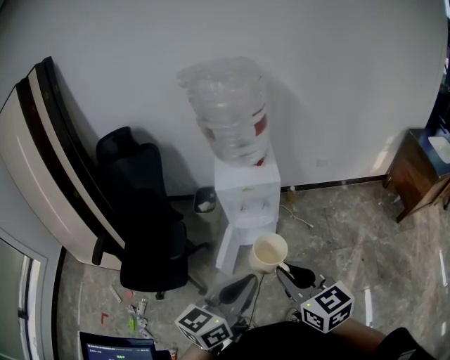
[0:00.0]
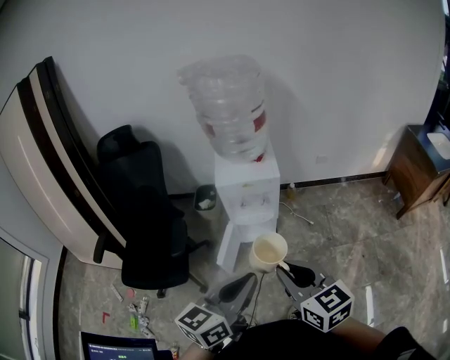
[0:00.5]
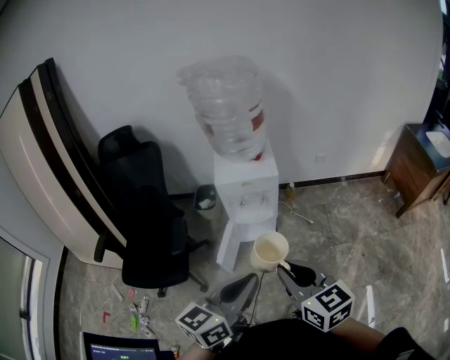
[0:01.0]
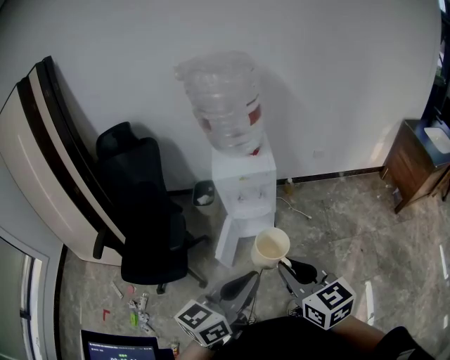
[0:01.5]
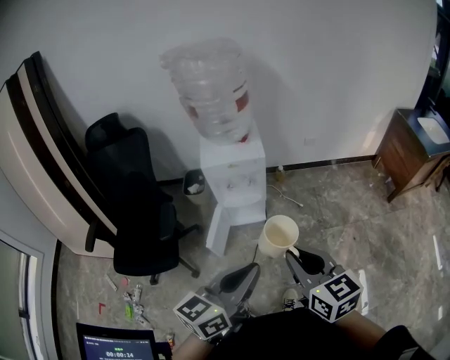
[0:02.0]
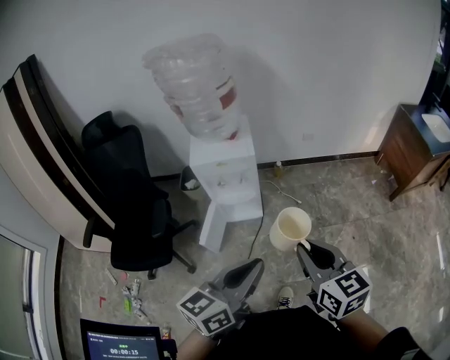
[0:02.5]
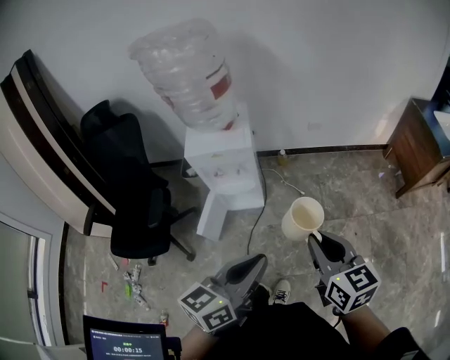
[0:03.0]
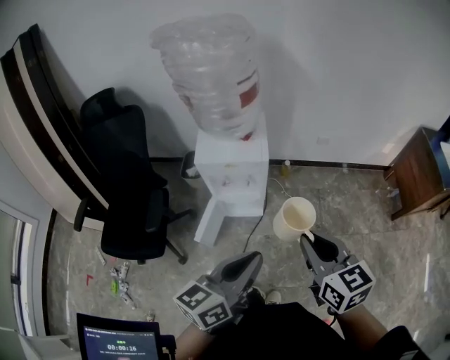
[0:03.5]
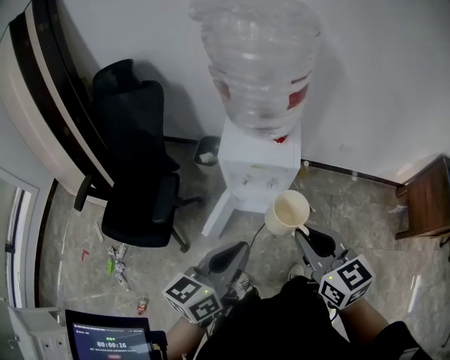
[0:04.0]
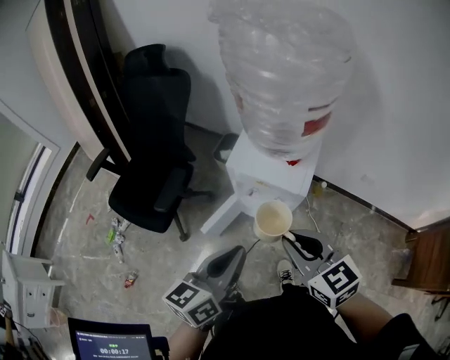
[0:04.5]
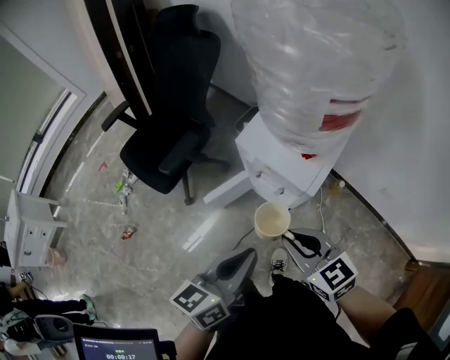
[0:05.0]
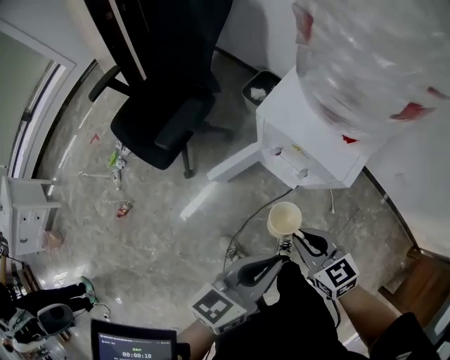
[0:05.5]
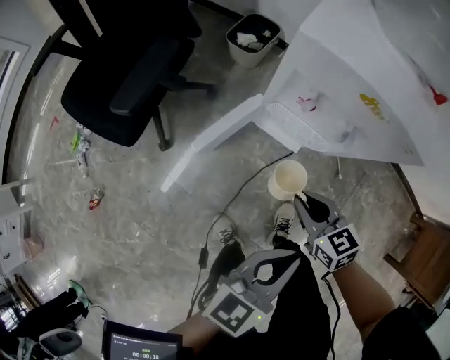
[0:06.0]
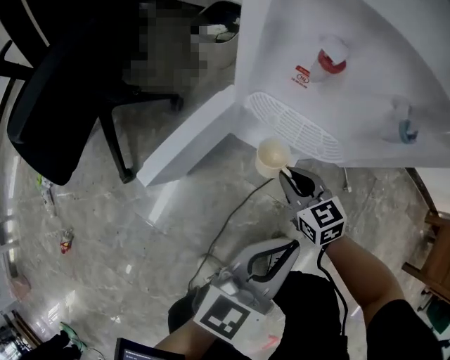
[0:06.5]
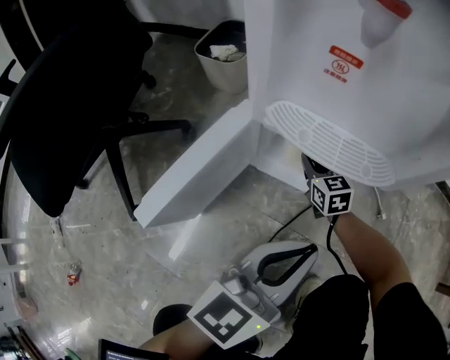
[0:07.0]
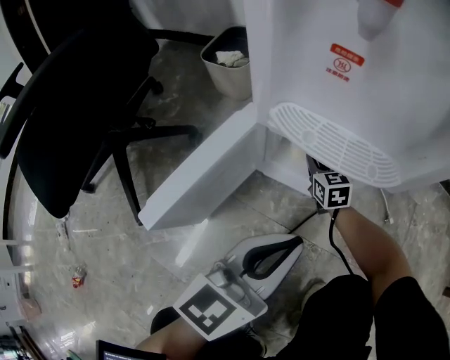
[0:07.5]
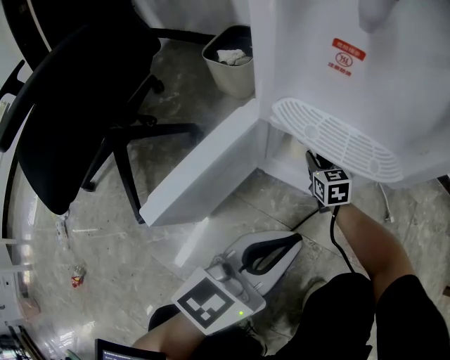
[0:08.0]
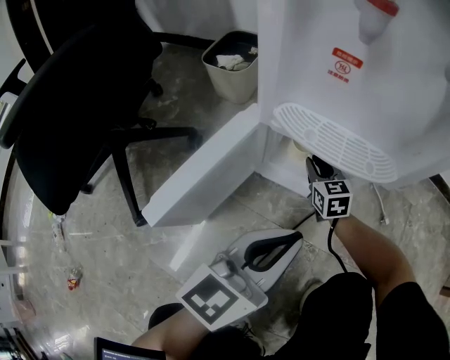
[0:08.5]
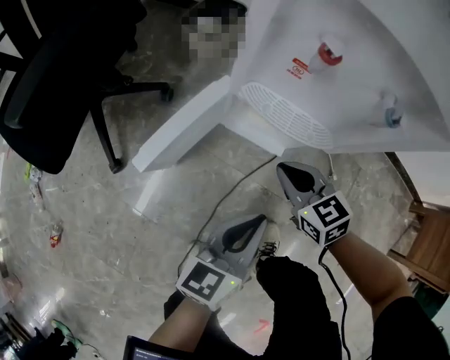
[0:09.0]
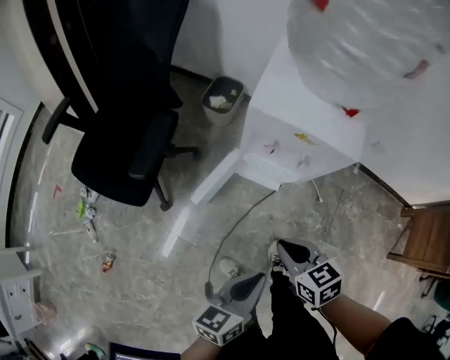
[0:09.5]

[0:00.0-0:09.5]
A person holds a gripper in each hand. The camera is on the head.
0:00.0 to 0:02.0: The right gripper travels to the right by some 5 cm; the left gripper moves some 5 cm.
0:02.0 to 0:04.0: Both grippers travel together forward, some 20 cm. The left gripper changes its angle by approximately 20 degrees.
0:04.0 to 0:05.5: The right gripper is displaced downward by some 20 cm, and swivels roughly 40 degrees. The left gripper travels downward by some 10 cm, and changes its angle by approximately 20 degrees.
0:05.5 to 0:07.5: Both grippers move downward, about 50 cm. The right gripper rotates some 40 degrees. The left gripper rotates about 20 degrees.
0:07.5 to 0:09.5: The left gripper goes approximately 35 cm upward and backward, and swivels some 30 degrees, while the right gripper shifts approximately 60 cm upward and backward, and rotates some 20 degrees.

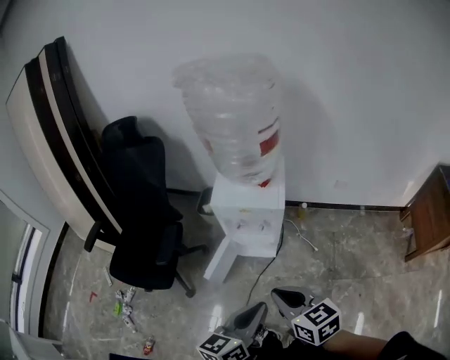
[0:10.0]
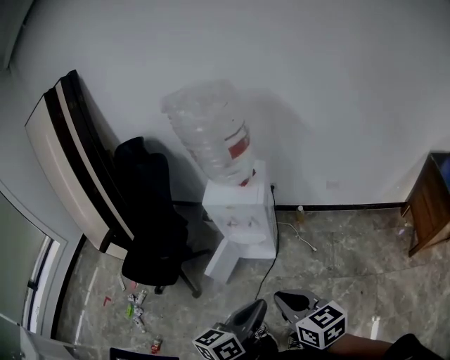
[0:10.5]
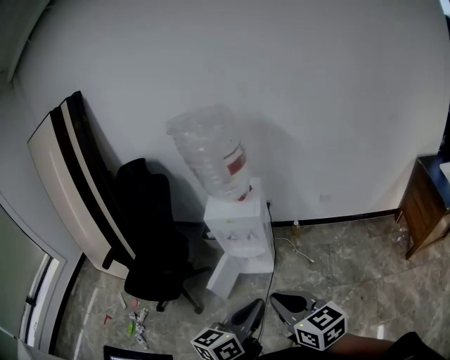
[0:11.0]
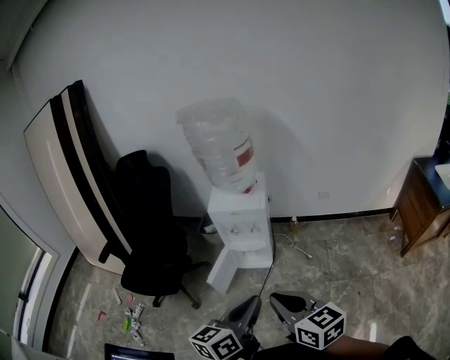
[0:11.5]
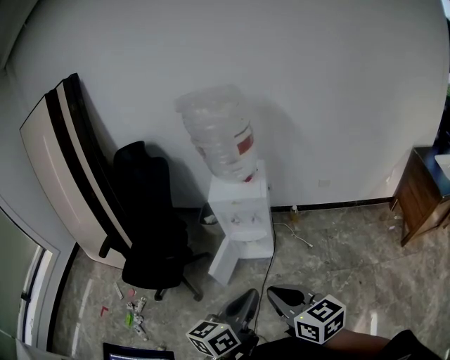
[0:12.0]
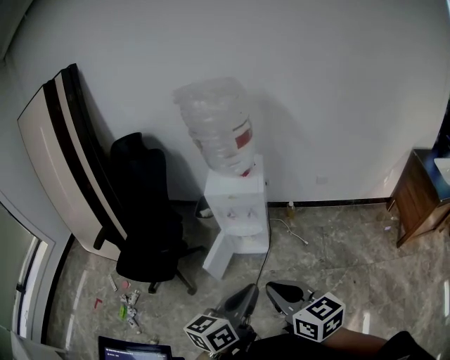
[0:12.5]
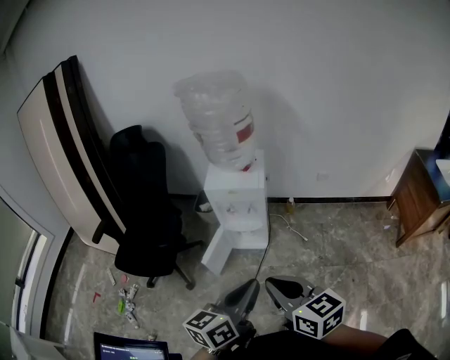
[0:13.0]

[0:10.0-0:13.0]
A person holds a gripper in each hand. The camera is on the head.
0:10.0 to 0:11.5: The two grippers go about 15 cm backward and upward.
0:11.5 to 0:13.0: The grippers move only a little.

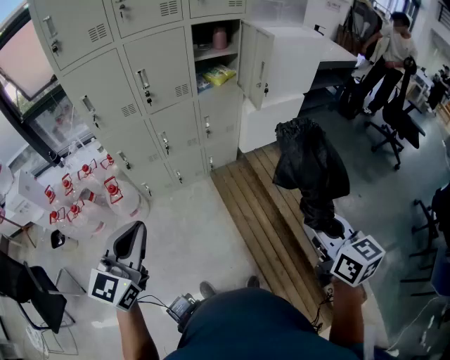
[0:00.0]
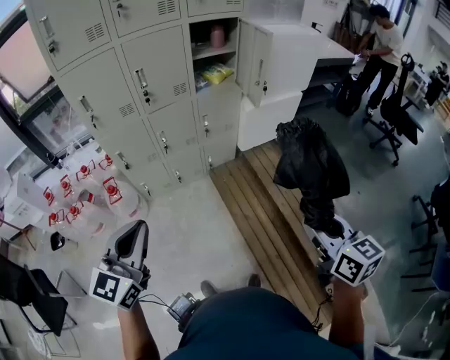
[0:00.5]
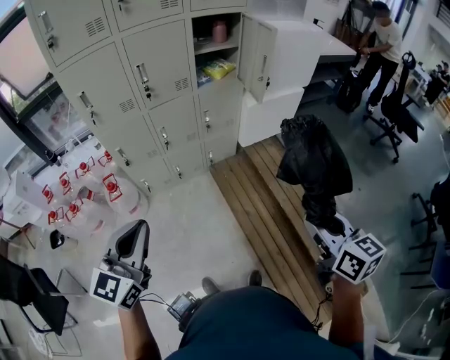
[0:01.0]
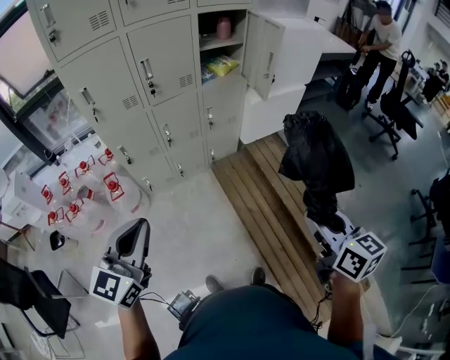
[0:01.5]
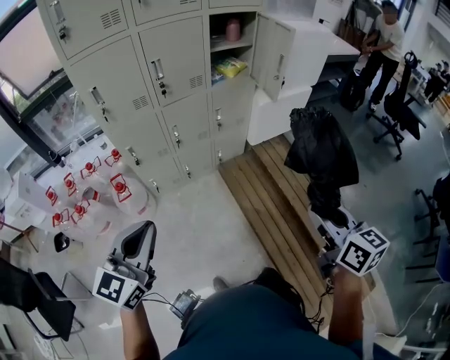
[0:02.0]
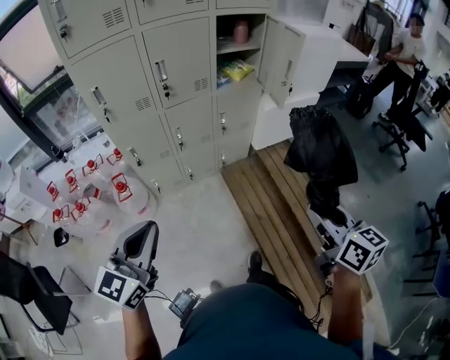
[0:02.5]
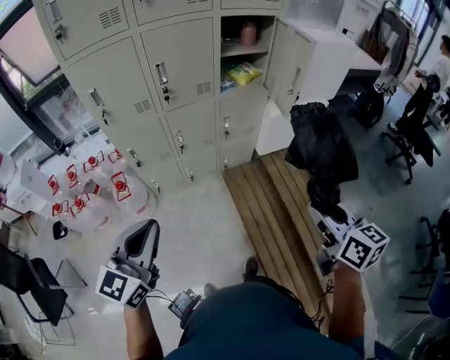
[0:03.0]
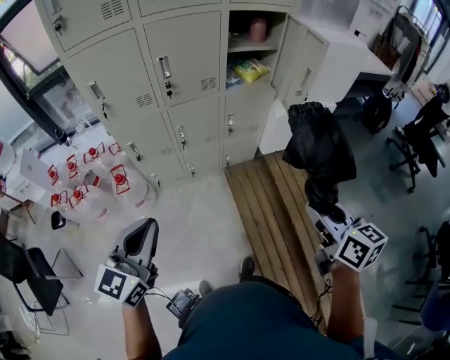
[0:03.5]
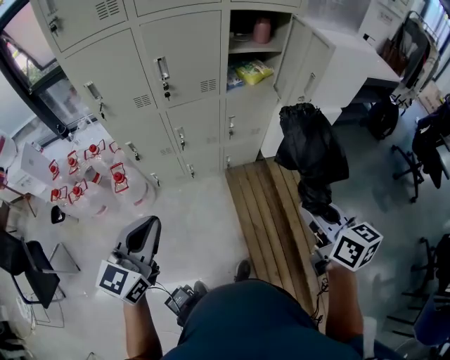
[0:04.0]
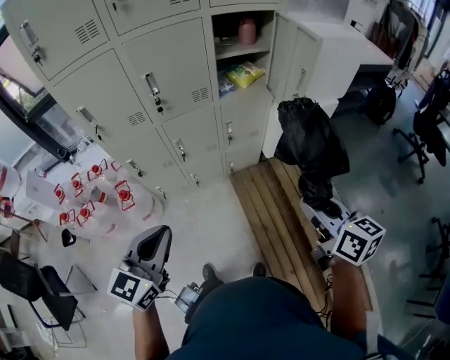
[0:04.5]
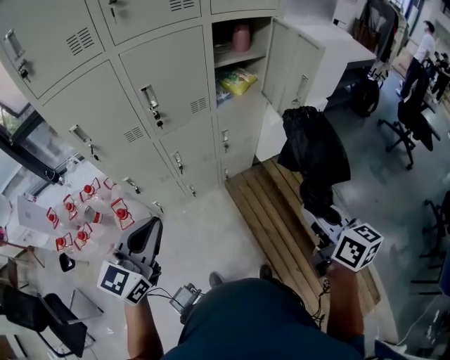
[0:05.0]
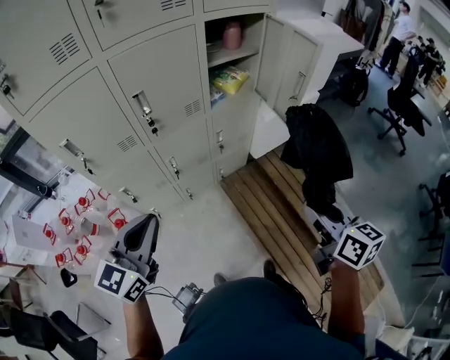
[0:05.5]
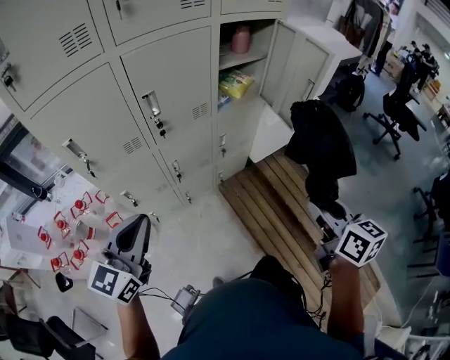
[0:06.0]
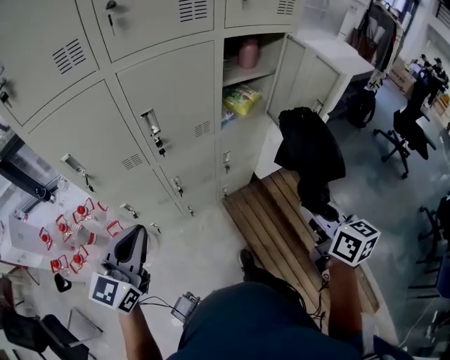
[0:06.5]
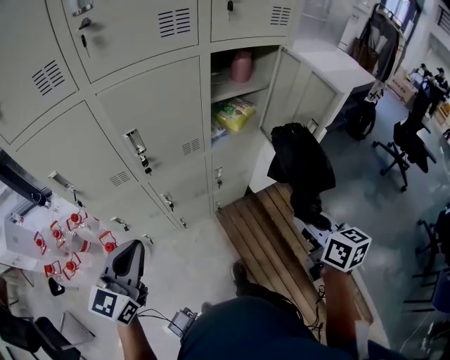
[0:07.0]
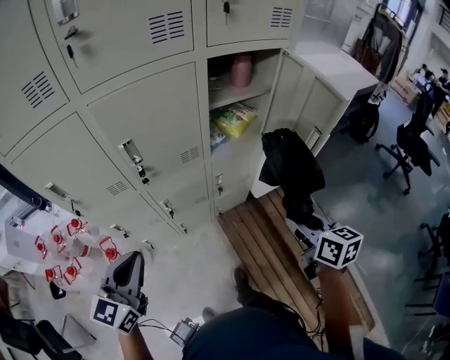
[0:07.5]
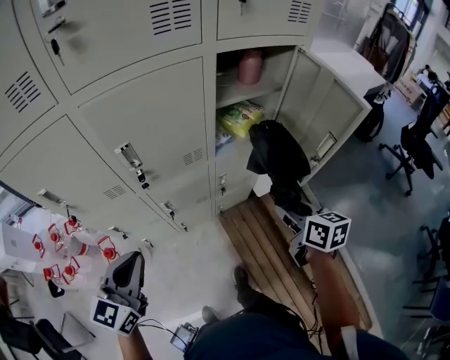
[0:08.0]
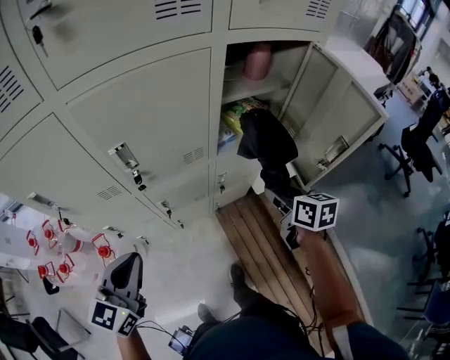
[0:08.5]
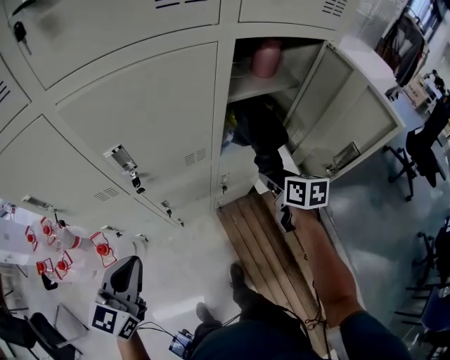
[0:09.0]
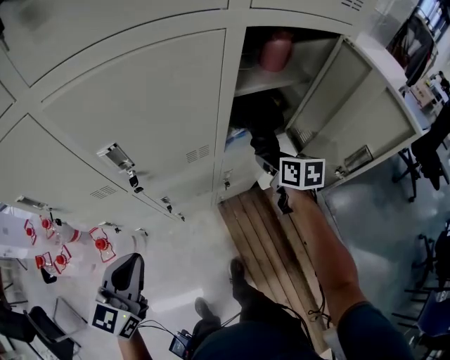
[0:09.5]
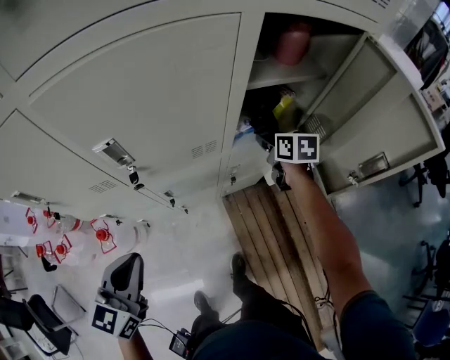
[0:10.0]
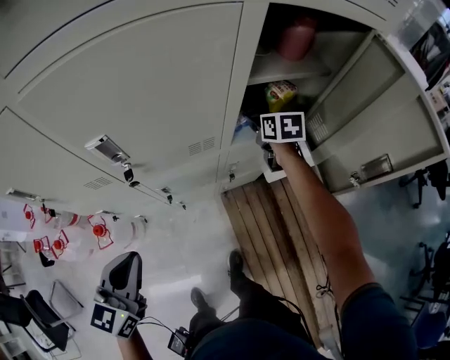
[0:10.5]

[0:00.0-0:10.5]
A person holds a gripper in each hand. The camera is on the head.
0:00.0 to 0:02.0: The grippers both shift to the left by some 10 cm.
0:02.0 to 0:04.0: The left gripper heads forward and to the right, covering some 20 cm, while the right gripper heads forward, covering about 25 cm.
0:04.0 to 0:06.5: The two grippers go approximately 25 cm forward and to the left.
0:06.5 to 0:08.5: The left gripper goes roughly 15 cm forward and downward; the right gripper is displaced forward and downward by about 30 cm.
0:08.5 to 0:10.5: The left gripper shifts approximately 5 cm downward, while the right gripper shifts approximately 25 cm forward.

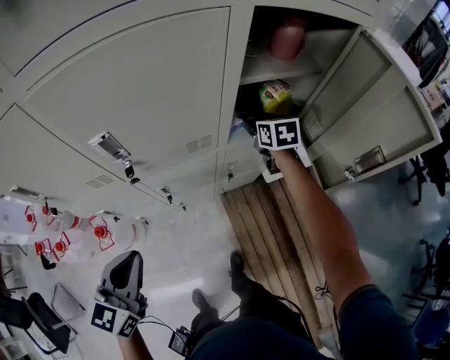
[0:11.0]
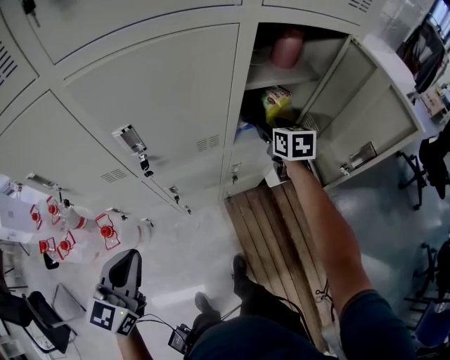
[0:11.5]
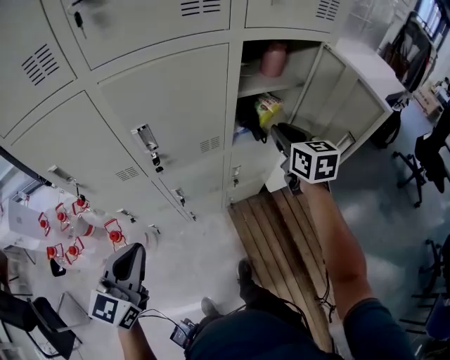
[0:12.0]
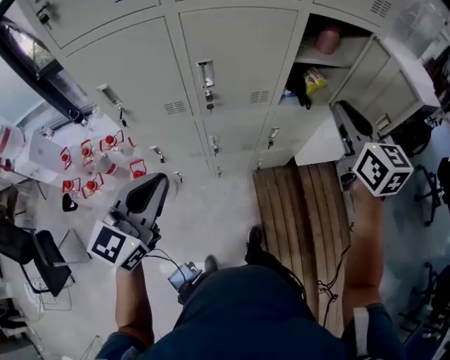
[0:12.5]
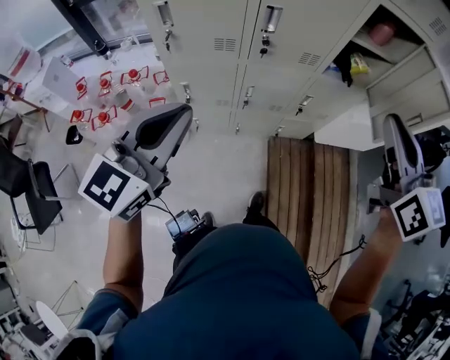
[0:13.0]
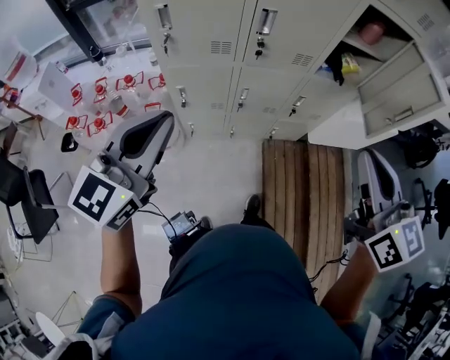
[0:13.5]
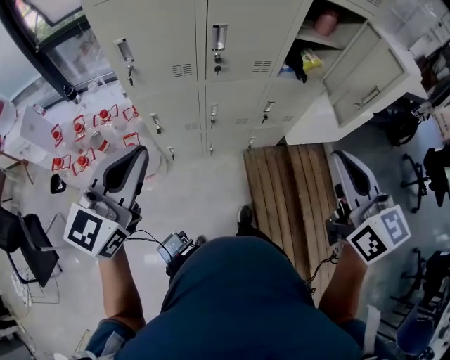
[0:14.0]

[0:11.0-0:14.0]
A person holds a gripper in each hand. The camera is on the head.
0:11.0 to 0:12.5: The left gripper goes approximately 20 cm upward and backward. The right gripper shifts some 40 cm backward and upward, swivels roughly 30 degrees, and closes.
0:12.5 to 0:14.0: The left gripper moves backward and to the left, approximately 15 cm; the right gripper moves backward, about 25 cm.
